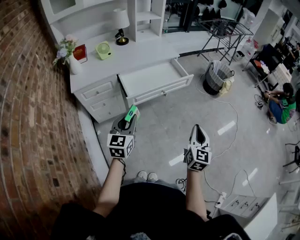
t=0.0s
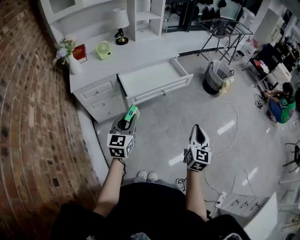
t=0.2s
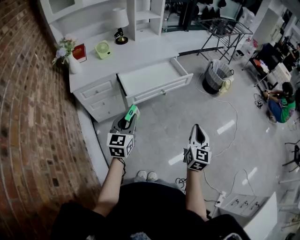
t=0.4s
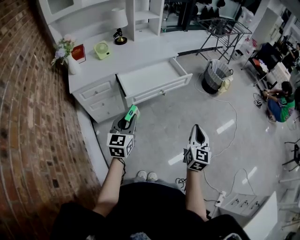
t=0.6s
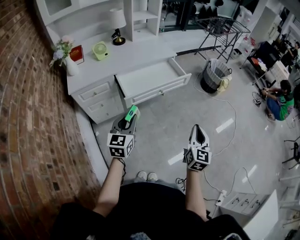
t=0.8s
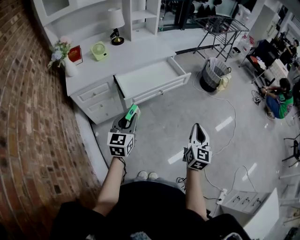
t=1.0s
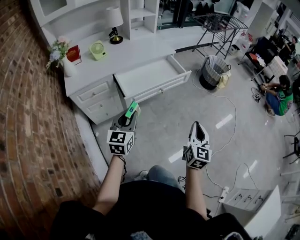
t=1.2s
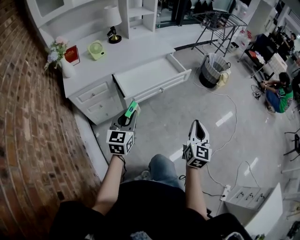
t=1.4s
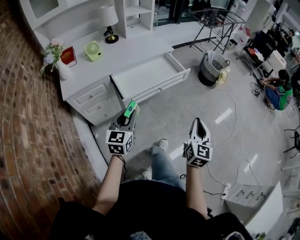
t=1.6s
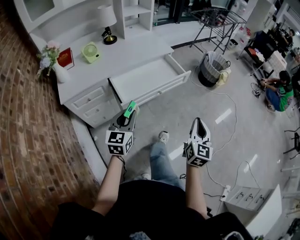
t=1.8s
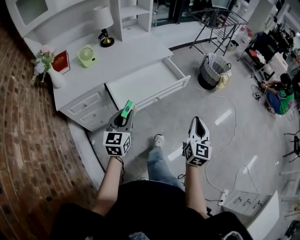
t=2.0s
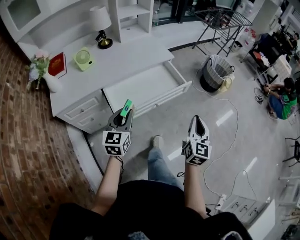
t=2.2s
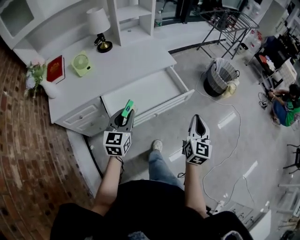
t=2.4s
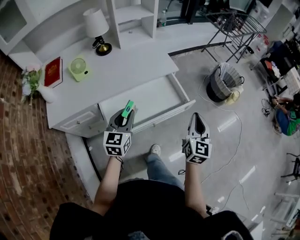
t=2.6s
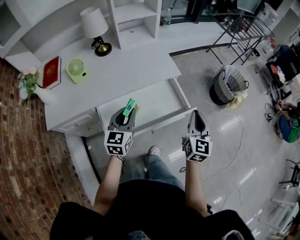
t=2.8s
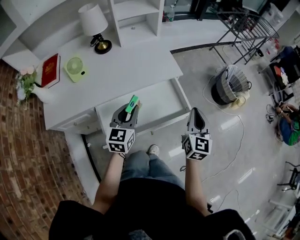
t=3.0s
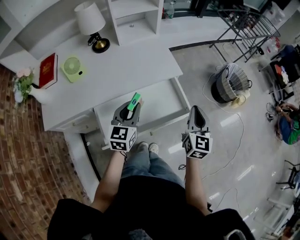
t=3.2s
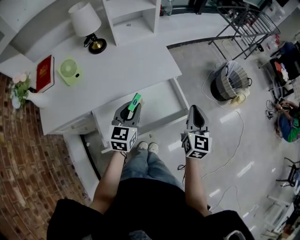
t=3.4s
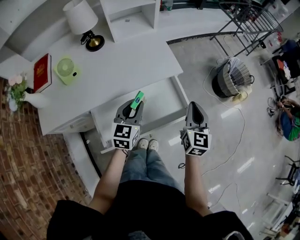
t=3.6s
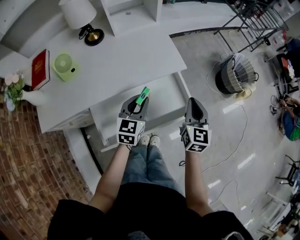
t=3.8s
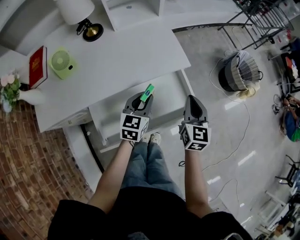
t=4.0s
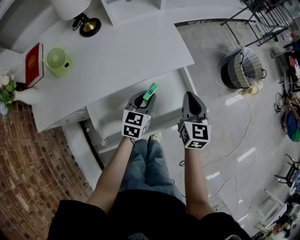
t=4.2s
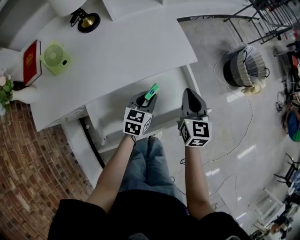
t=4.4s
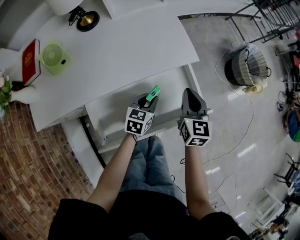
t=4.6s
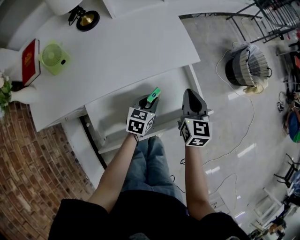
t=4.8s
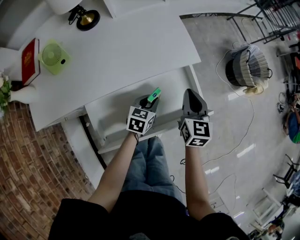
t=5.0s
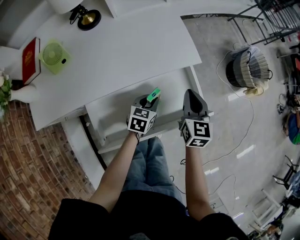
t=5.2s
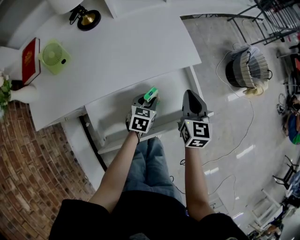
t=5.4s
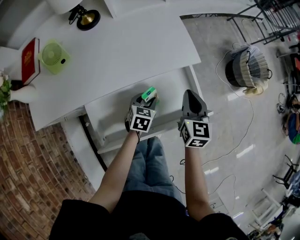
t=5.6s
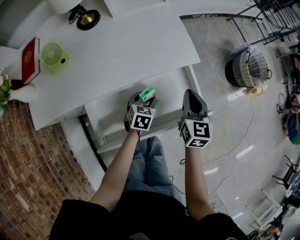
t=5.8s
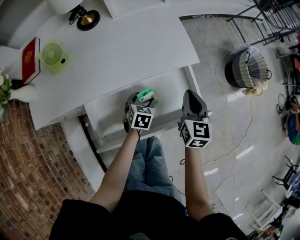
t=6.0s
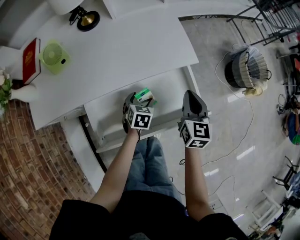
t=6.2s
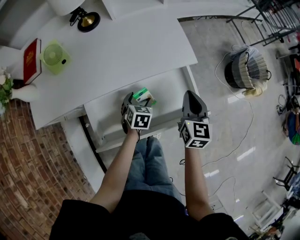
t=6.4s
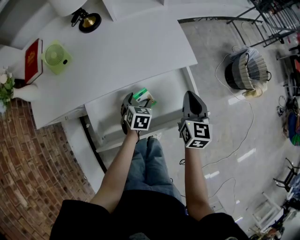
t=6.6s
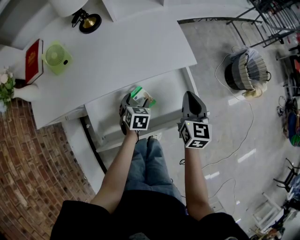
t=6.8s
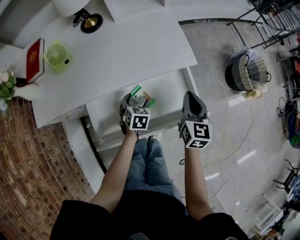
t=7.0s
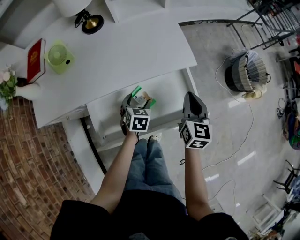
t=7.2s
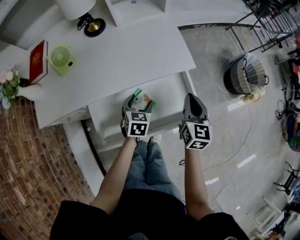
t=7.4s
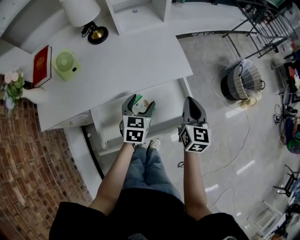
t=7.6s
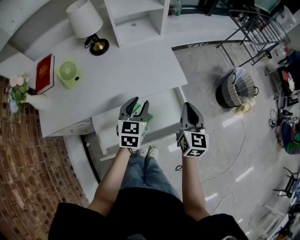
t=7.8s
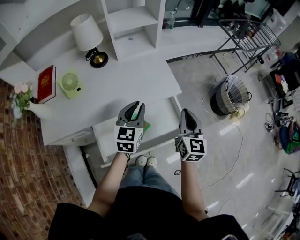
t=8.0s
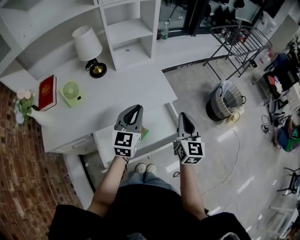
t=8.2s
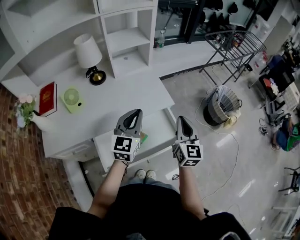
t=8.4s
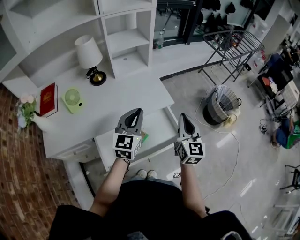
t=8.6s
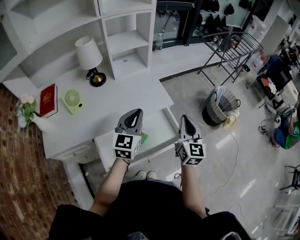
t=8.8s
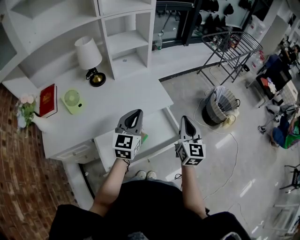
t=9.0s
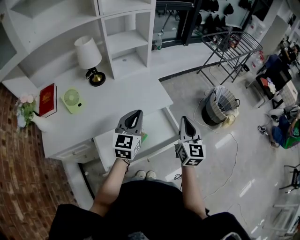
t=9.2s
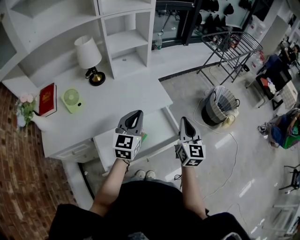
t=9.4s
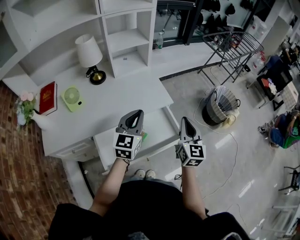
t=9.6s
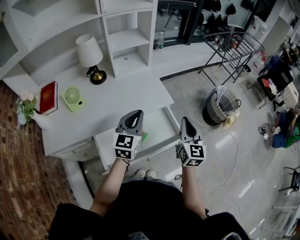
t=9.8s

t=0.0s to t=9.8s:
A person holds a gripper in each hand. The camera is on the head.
t=0.0s to t=1.4s: The grippers move only a little.
t=1.4s to t=2.8s: The pair of grippers is taken forward, roughly 40 cm.
t=2.8s to t=4.2s: The right gripper moves forward, downward and to the left, some 20 cm; the left gripper shifts some 20 cm forward, downward and to the right.
t=4.2s to t=5.6s: The left gripper shifts some 10 cm downward, and rotates some 20 degrees.
t=5.6s to t=7.0s: The left gripper opens up.
t=7.0s to t=8.4s: The left gripper goes approximately 35 cm upward, angles its fingers upward, by some 50 degrees, and closes; the right gripper moves upward, approximately 20 cm.
t=8.4s to t=9.8s: There are only small adjustments of the grippers.

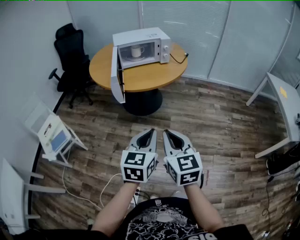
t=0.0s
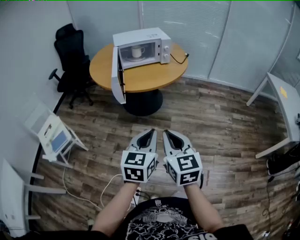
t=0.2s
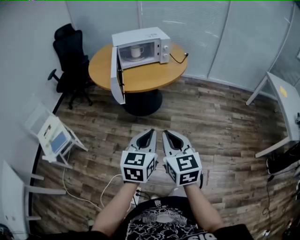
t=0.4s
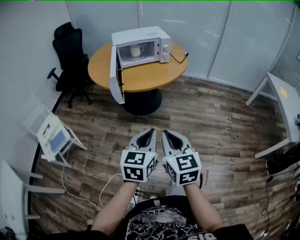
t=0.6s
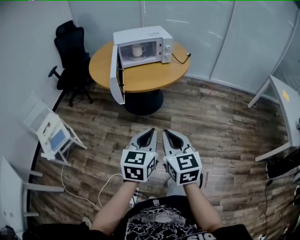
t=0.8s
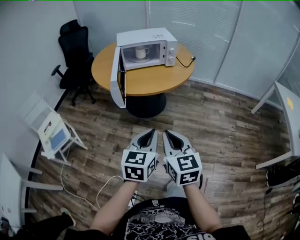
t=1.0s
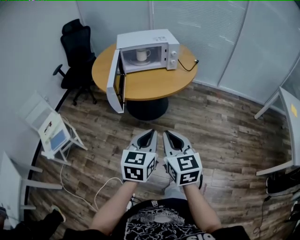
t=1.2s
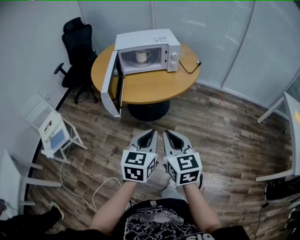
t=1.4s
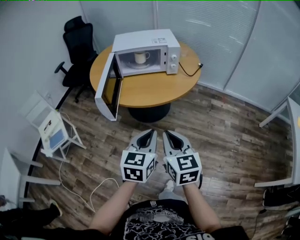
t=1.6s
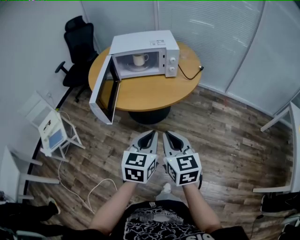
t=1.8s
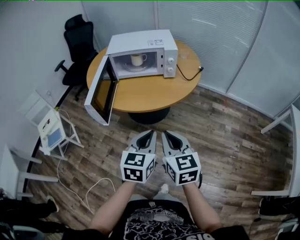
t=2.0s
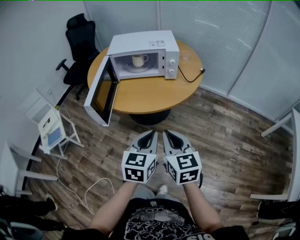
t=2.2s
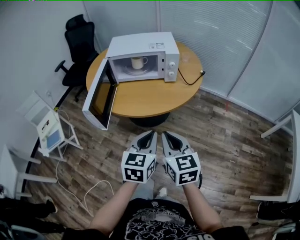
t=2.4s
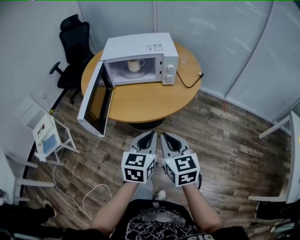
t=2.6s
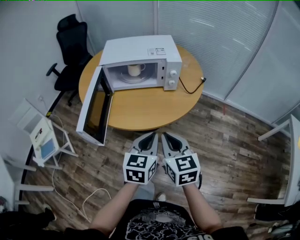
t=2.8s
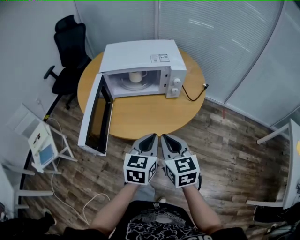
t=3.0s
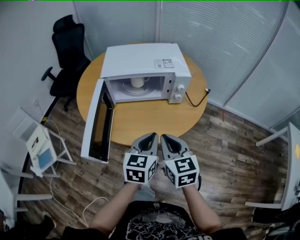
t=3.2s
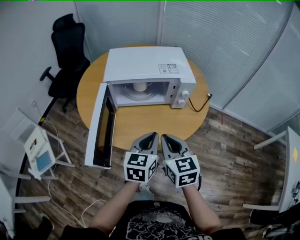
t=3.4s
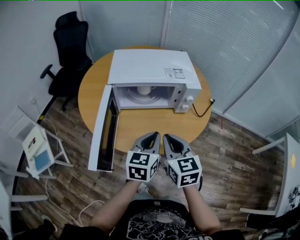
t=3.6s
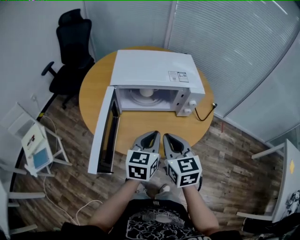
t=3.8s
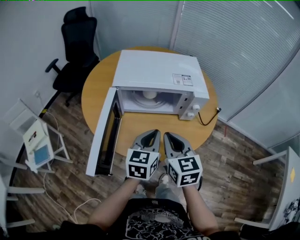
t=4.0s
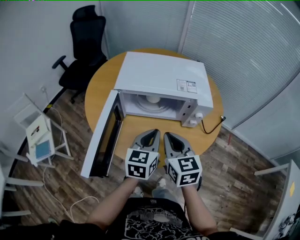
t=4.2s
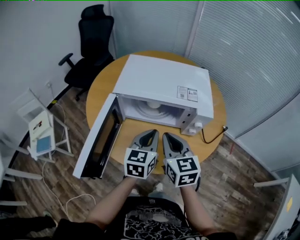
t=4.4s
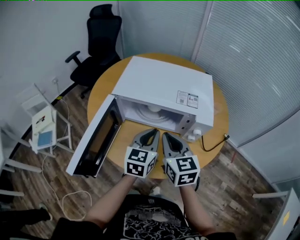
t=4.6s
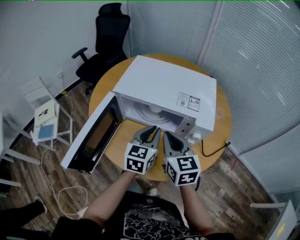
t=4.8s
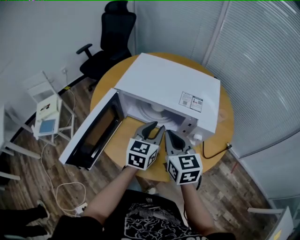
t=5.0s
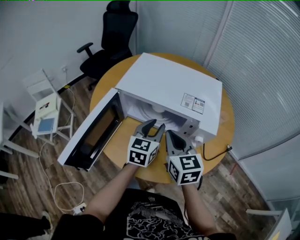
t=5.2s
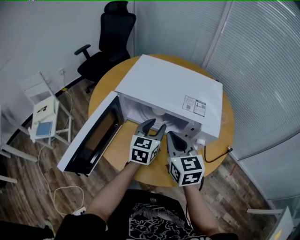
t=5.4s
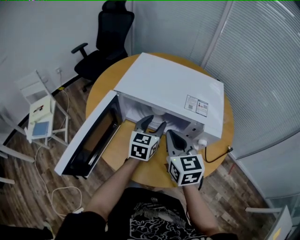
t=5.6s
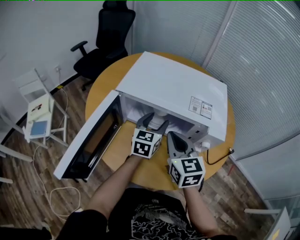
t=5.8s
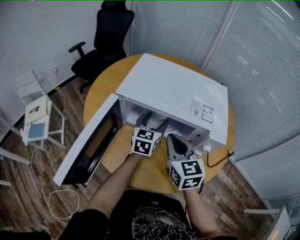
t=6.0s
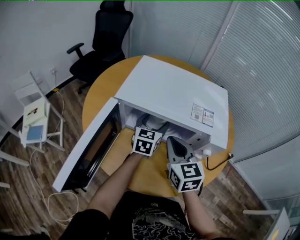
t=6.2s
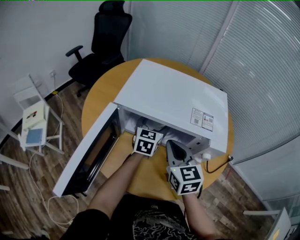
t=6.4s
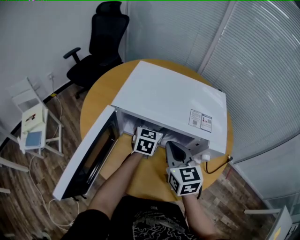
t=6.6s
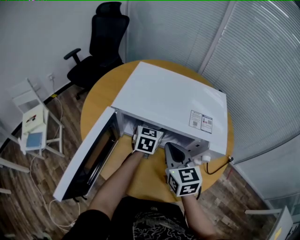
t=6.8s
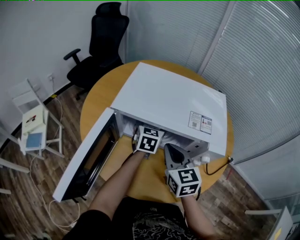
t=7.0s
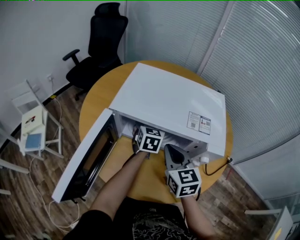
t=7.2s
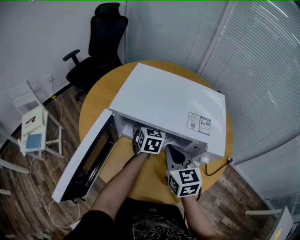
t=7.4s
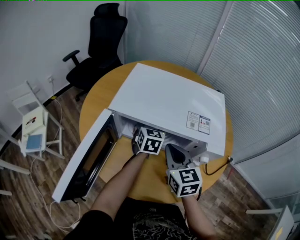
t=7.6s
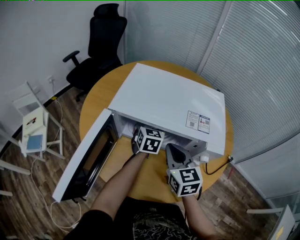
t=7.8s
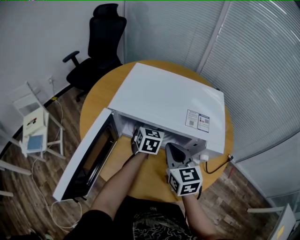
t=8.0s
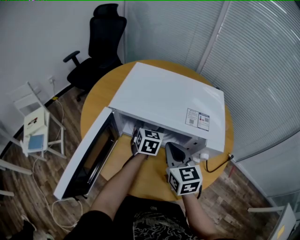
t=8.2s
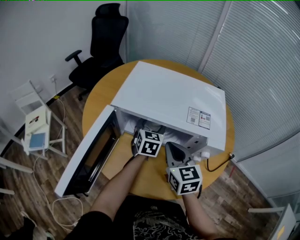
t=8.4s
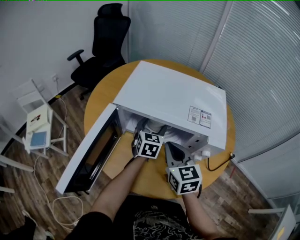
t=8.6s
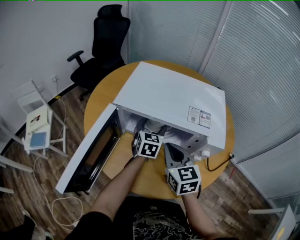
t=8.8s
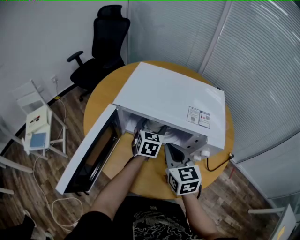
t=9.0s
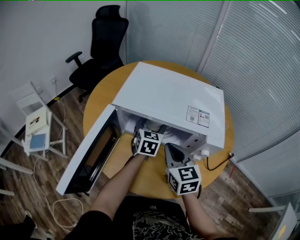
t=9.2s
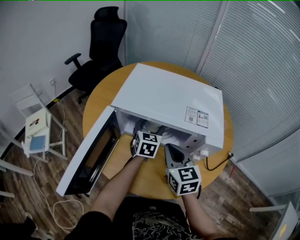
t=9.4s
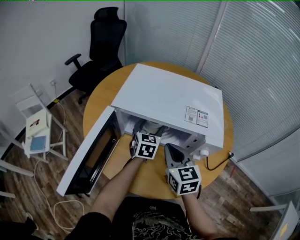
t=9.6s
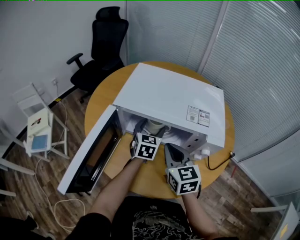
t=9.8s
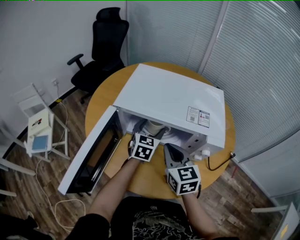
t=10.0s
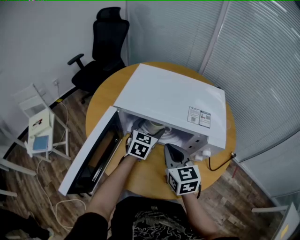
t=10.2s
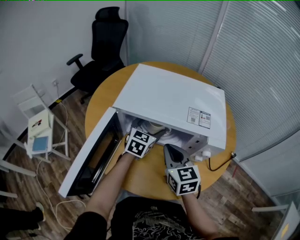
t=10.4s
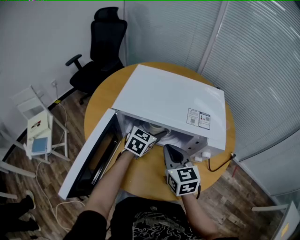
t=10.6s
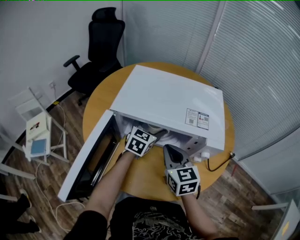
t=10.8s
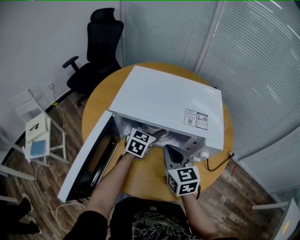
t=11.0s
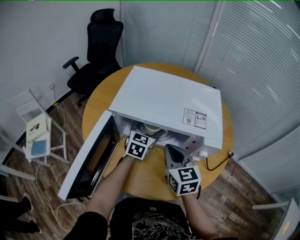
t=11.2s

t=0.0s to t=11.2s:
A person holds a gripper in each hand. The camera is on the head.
t=0.0s to t=1.6s: The two grippers go approximately 20 cm forward and to the right.
t=1.6s to t=3.2s: Both grippers travel together forward, about 25 cm.
t=3.2s to t=4.8s: The two grippers go roughly 20 cm forward. The right gripper turns by some 20 degrees.
t=4.8s to t=6.4s: The right gripper is displaced forward and downward by about 10 cm. The left gripper moves forward and downward, approximately 20 cm, and opens its fingers.
t=6.4s to t=11.2s: There are only small adjustments of the grippers.

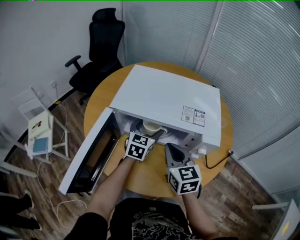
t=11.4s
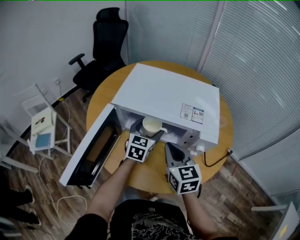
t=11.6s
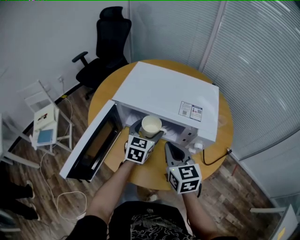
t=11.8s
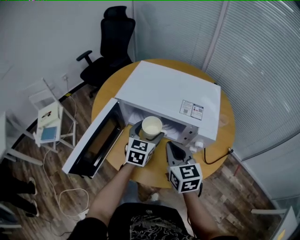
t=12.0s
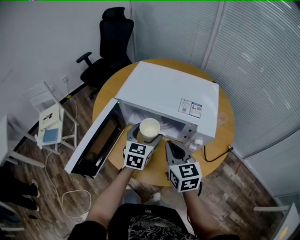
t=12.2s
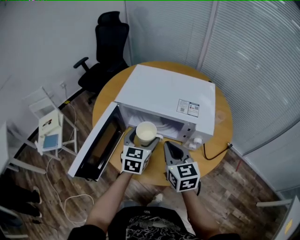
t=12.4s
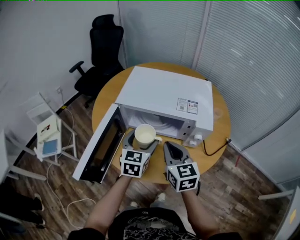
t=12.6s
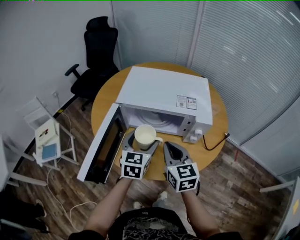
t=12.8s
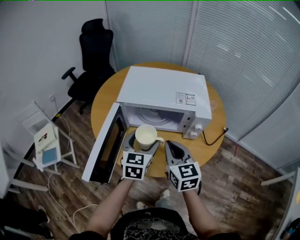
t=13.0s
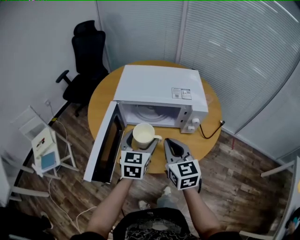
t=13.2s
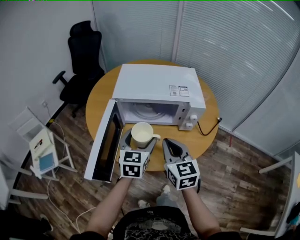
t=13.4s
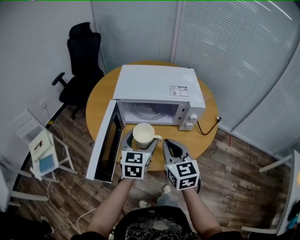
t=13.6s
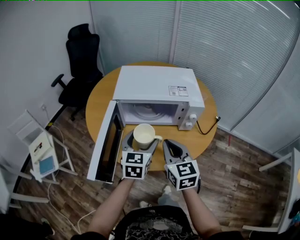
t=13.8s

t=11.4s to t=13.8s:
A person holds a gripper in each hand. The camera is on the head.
t=11.4s to t=12.6s: The right gripper goes about 5 cm backward. Meanwhile the left gripper moves backward and upward, some 15 cm.
t=12.6s to t=13.8s: Both grippers travel together backward, roughly 10 cm.
